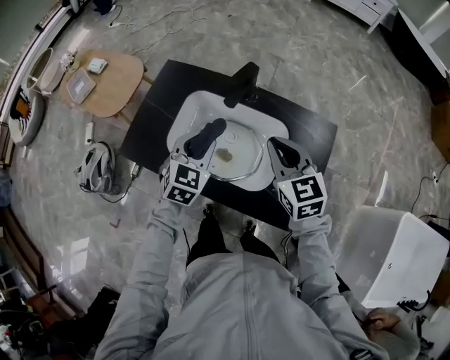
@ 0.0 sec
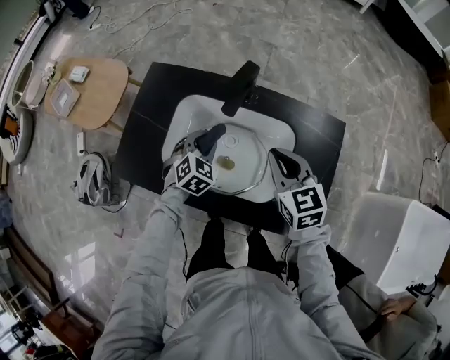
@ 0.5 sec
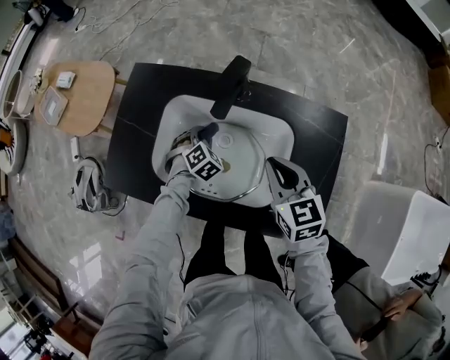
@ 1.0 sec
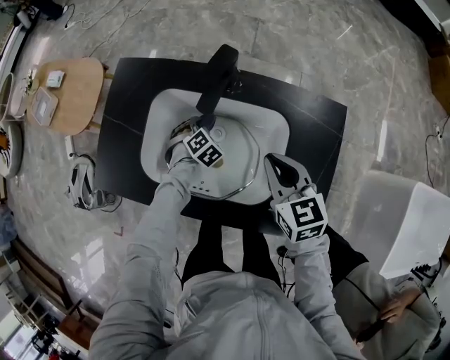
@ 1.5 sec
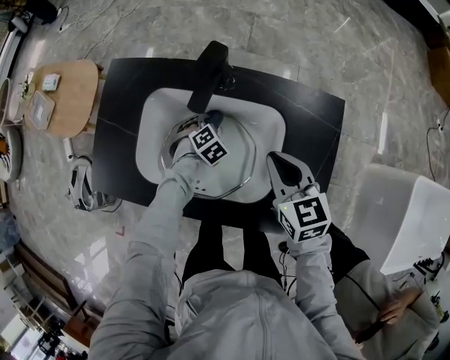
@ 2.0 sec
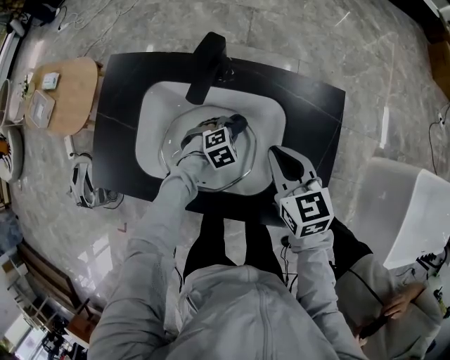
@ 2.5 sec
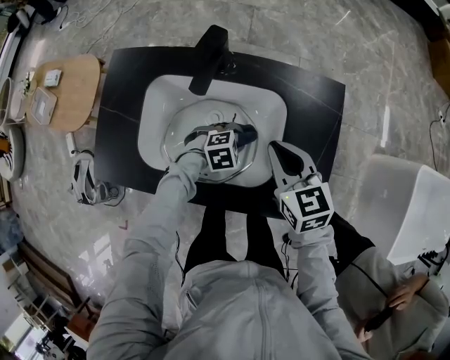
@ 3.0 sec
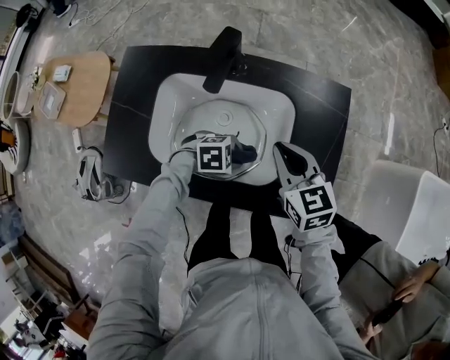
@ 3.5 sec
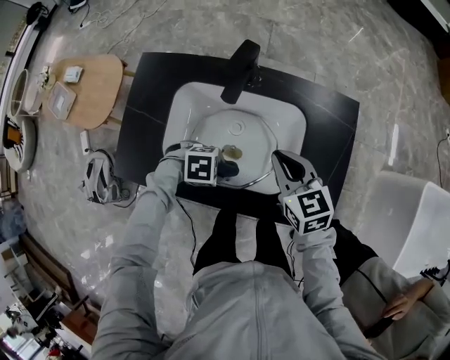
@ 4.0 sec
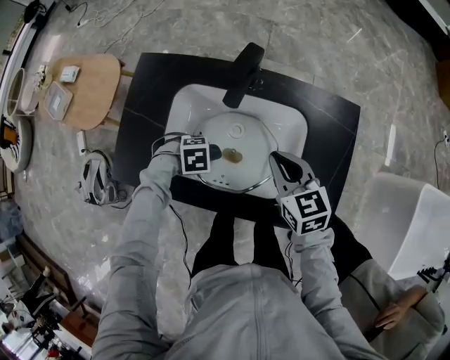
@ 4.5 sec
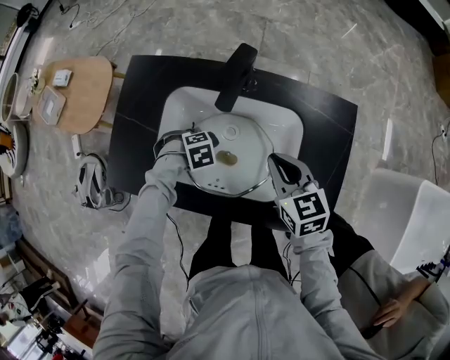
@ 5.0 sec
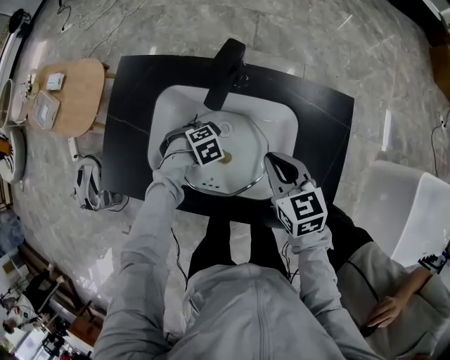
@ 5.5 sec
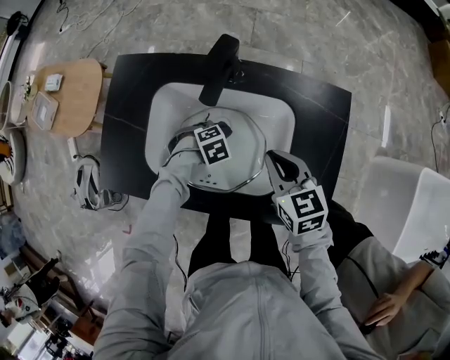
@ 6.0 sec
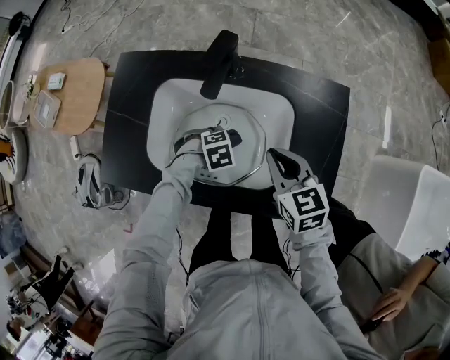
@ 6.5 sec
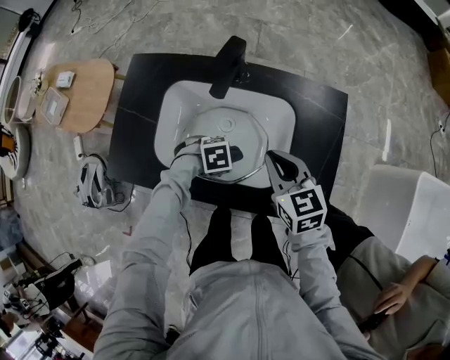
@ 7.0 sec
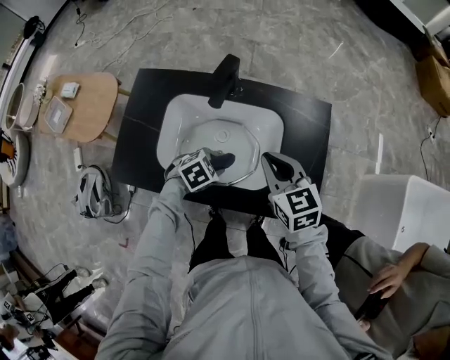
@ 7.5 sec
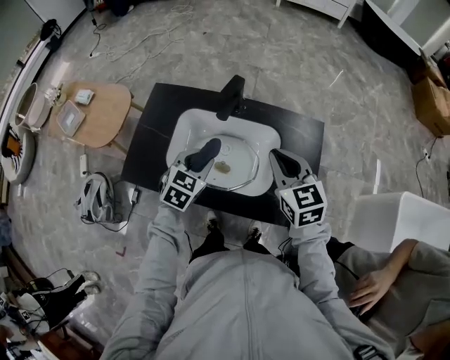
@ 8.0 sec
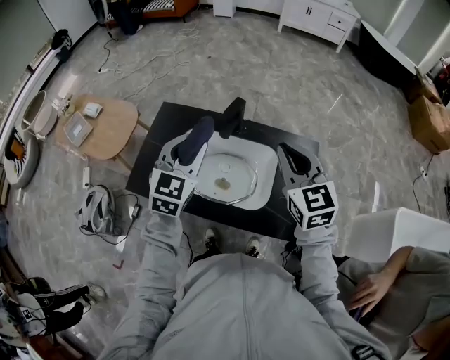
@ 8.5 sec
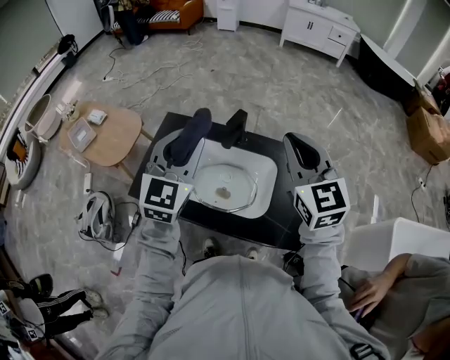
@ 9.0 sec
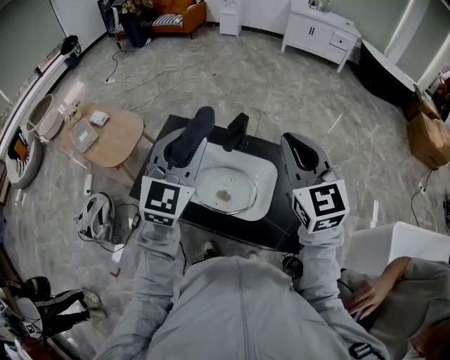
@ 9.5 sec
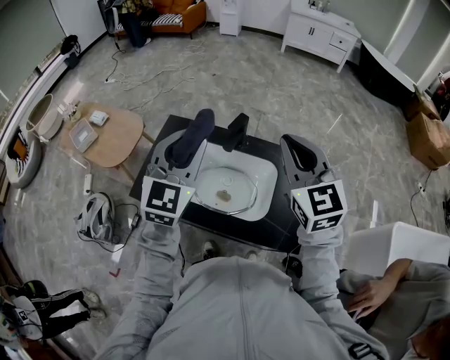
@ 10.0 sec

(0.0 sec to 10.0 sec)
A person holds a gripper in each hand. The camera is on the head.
0.0 sec - 2.0 sec: The left gripper moves downward, roughly 30 cm, and points its fingers approximately 40 degrees further downward; the right gripper moves downward, about 10 cm.
2.0 sec - 4.0 sec: The right gripper ends up about 5 cm from where it was; the left gripper changes place by roughly 25 cm, and changes its angle by approximately 50 degrees.
4.0 sec - 6.0 sec: The left gripper shifts by about 15 cm, and changes its angle by roughly 30 degrees.
6.0 sec - 8.0 sec: The right gripper heads upward, covering about 15 cm, while the left gripper moves upward, about 25 cm, and points its fingers some 40 degrees further upward.
8.0 sec - 10.0 sec: Both grippers move upward, about 25 cm. The left gripper tips its fingers upward by approximately 30 degrees. Meanwhile the right gripper swivels roughly 20 degrees.

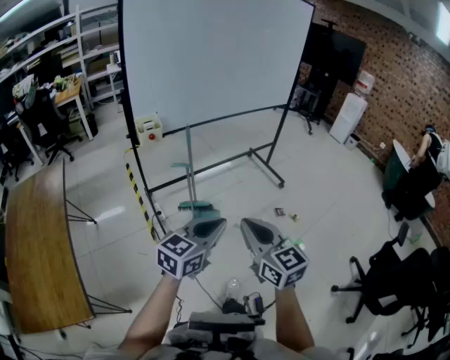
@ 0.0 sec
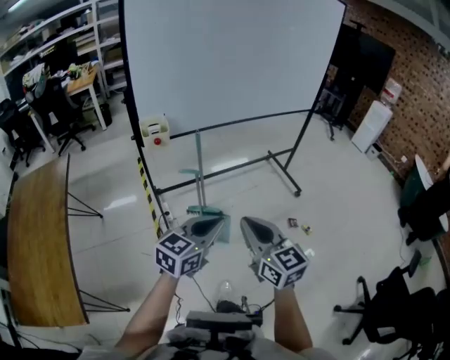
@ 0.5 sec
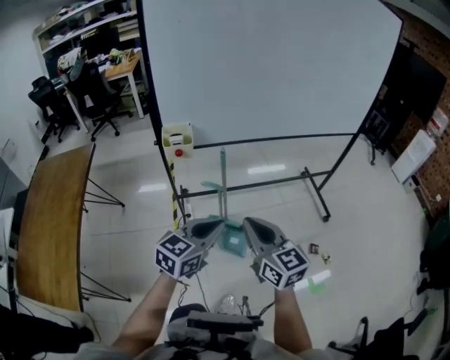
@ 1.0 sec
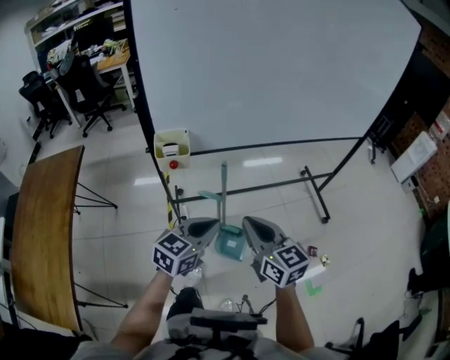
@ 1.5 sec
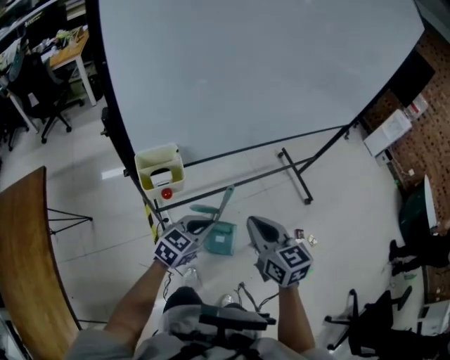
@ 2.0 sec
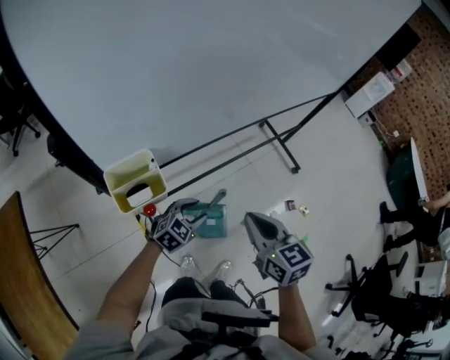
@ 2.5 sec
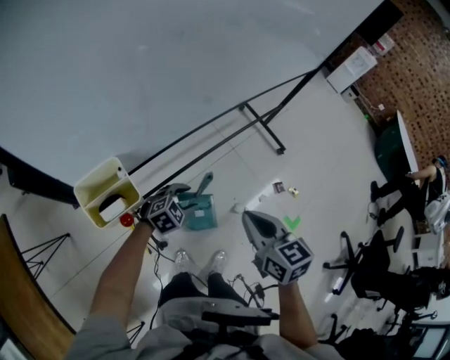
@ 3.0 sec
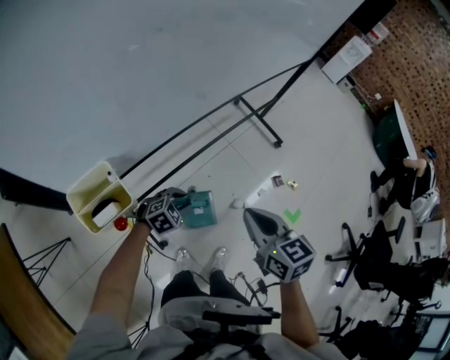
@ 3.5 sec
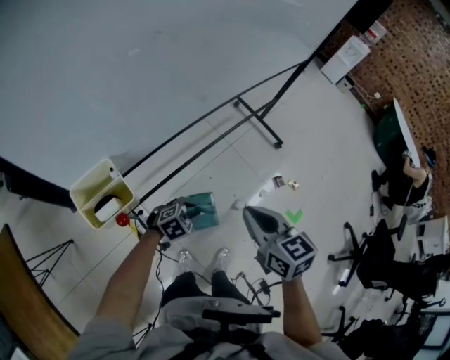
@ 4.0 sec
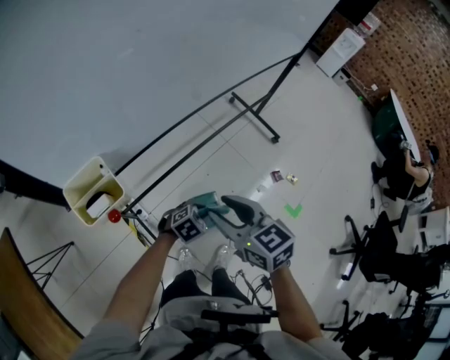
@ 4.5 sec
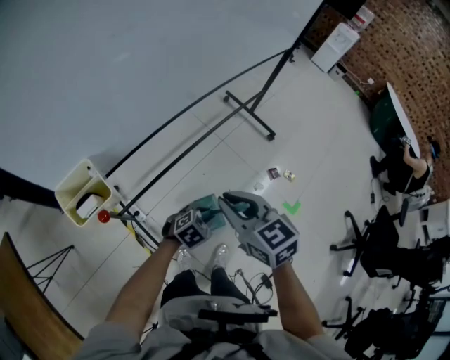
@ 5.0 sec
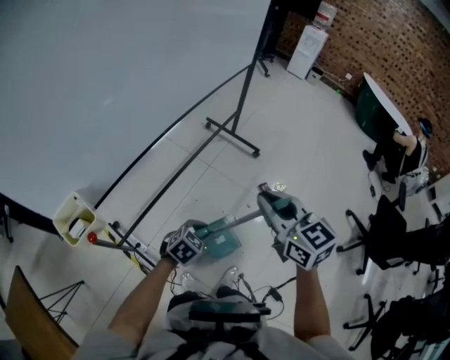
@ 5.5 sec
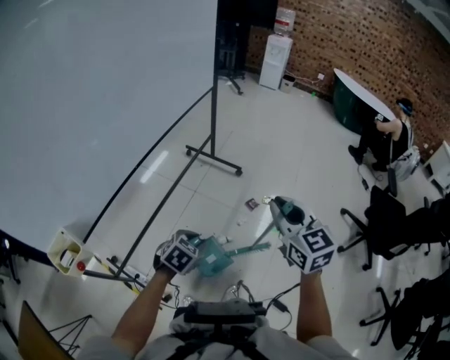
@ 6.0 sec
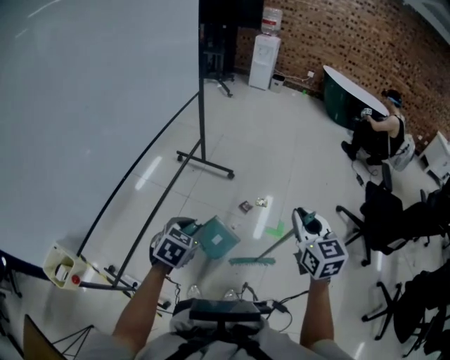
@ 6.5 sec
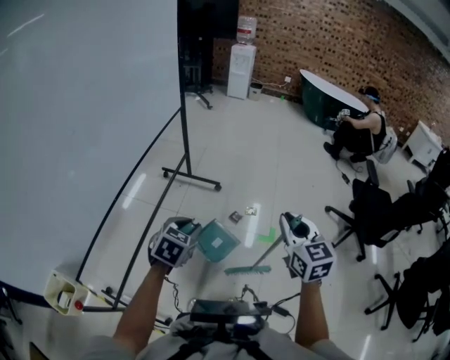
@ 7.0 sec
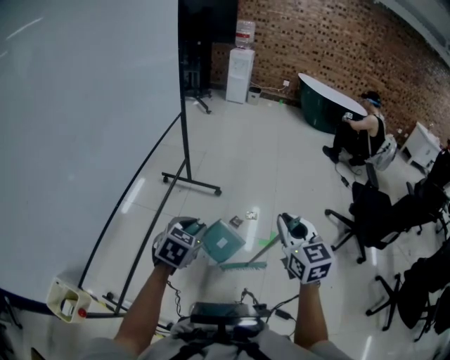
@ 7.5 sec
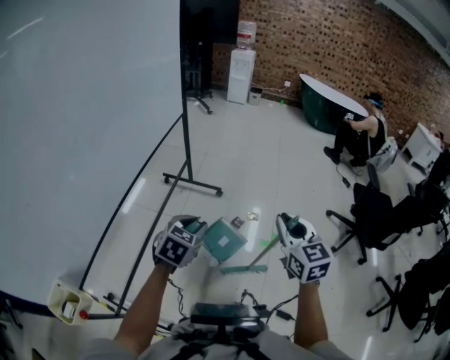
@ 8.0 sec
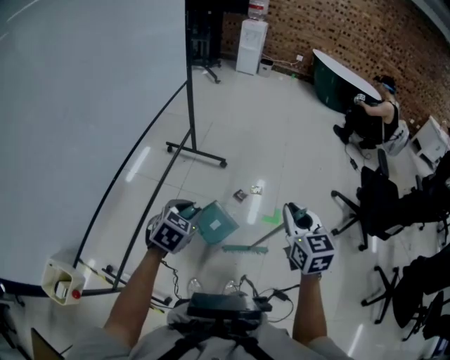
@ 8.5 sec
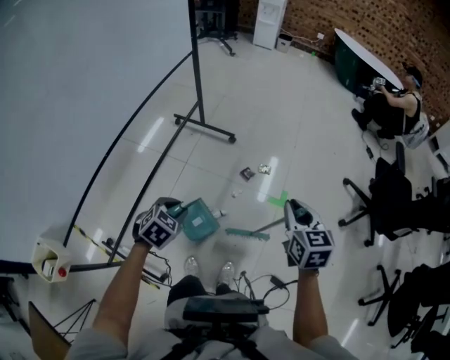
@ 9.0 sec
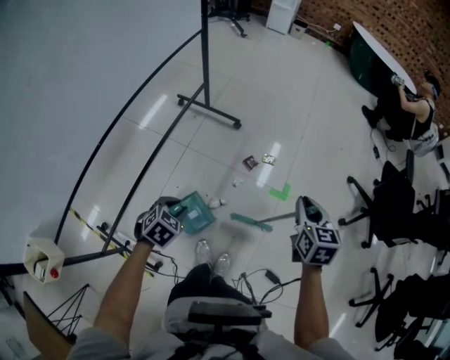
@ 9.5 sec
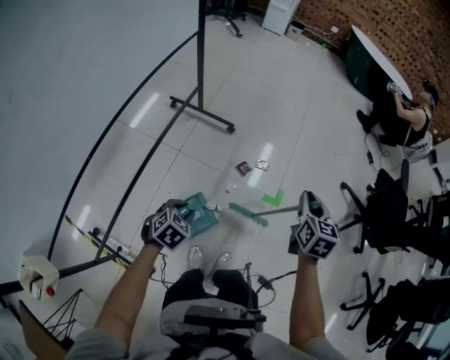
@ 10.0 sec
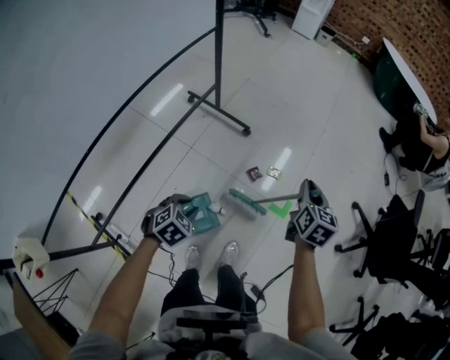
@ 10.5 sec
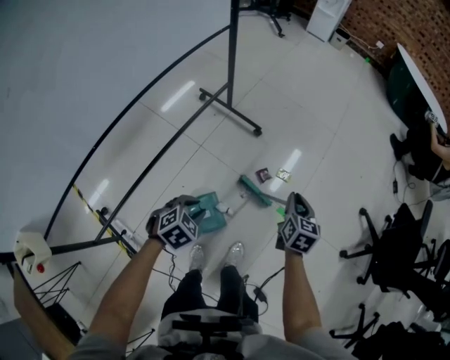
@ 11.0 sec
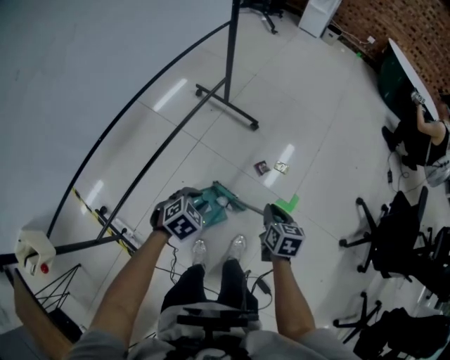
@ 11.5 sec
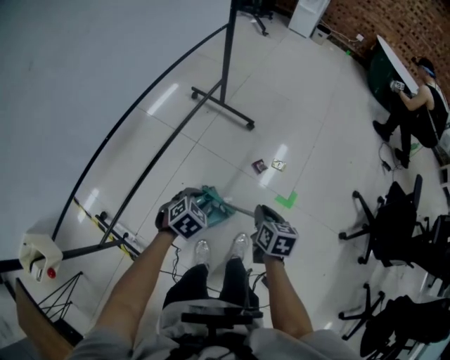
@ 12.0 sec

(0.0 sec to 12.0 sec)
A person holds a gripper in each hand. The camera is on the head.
0.0 sec - 2.0 sec: The left gripper heads forward and downward, covering some 40 cm; the right gripper moves forward, approximately 35 cm.
2.0 sec - 4.0 sec: The right gripper moves to the right, roughly 5 cm, while the left gripper goes approximately 15 cm downward, and changes its angle by about 50 degrees.
4.0 sec - 6.0 sec: The right gripper moves to the right, approximately 30 cm, changes its angle by some 30 degrees, and opens and closes again; the left gripper heads to the right and upward, covering some 25 cm.
6.0 sec - 8.0 sec: The left gripper shifts some 15 cm forward and upward. The right gripper is displaced to the right by roughly 5 cm.
8.0 sec - 10.0 sec: The right gripper heads downward, forward and to the right, covering about 25 cm, and swivels some 30 degrees. Meanwhile the left gripper shifts about 20 cm downward, and swivels about 20 degrees.
10.0 sec - 12.0 sec: The right gripper travels to the left, downward and backward by approximately 20 cm, and swivels approximately 20 degrees.

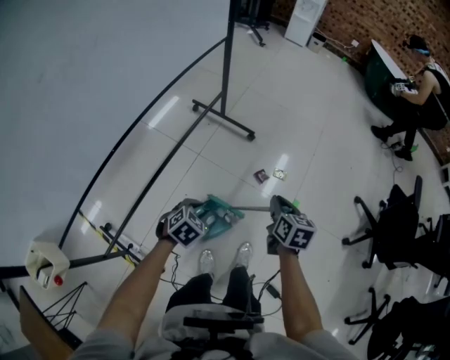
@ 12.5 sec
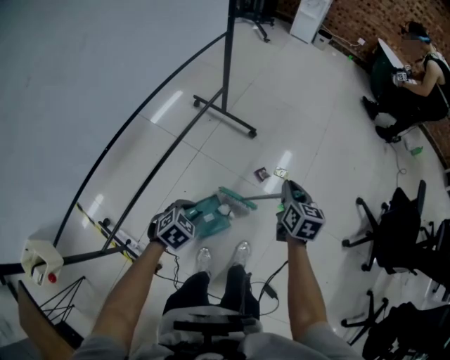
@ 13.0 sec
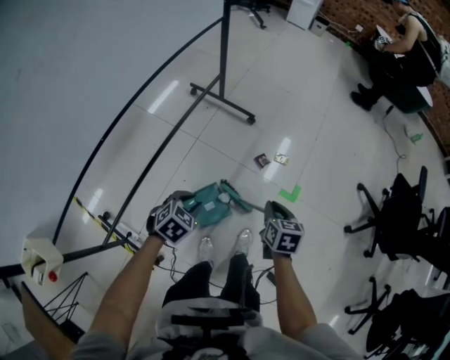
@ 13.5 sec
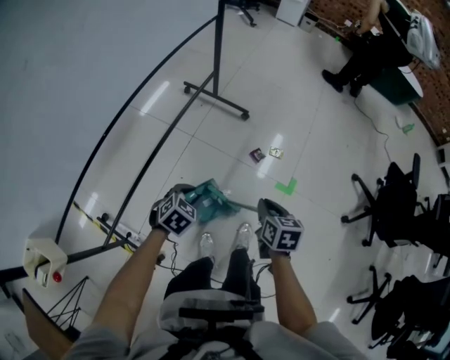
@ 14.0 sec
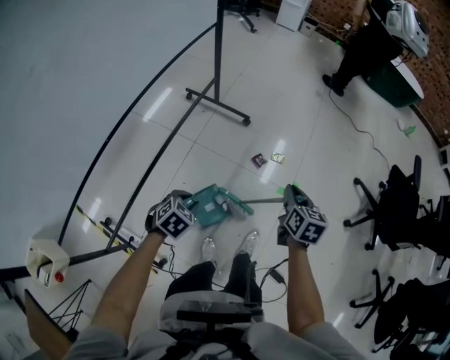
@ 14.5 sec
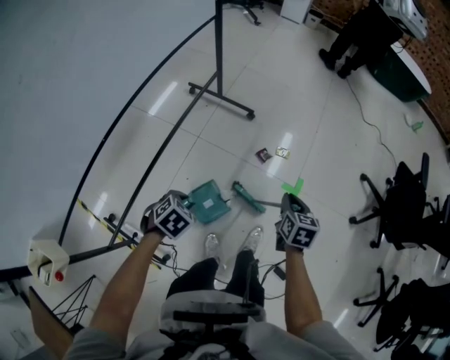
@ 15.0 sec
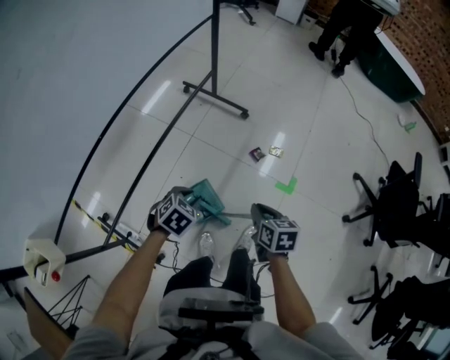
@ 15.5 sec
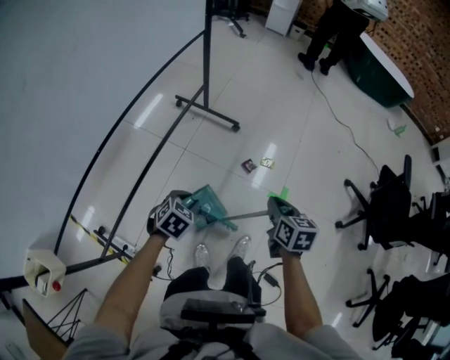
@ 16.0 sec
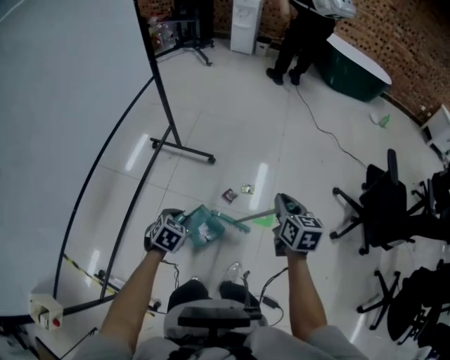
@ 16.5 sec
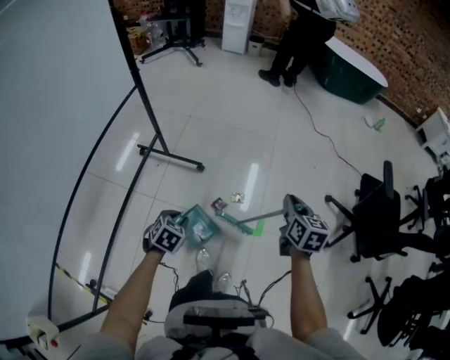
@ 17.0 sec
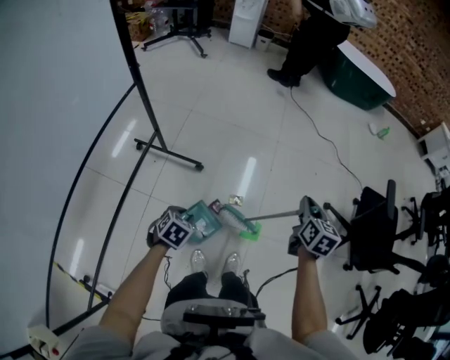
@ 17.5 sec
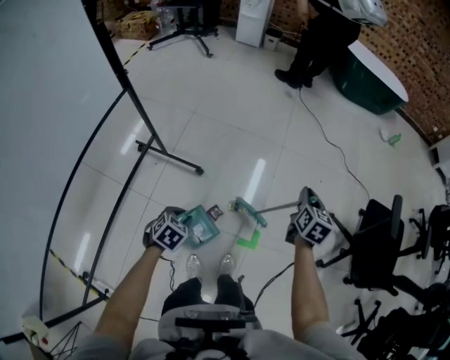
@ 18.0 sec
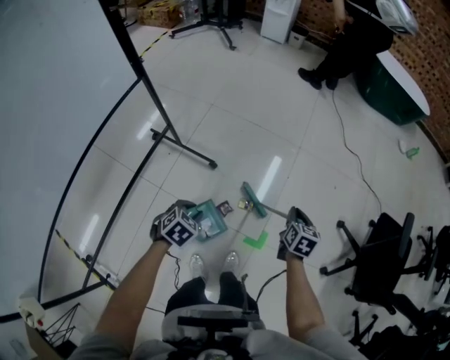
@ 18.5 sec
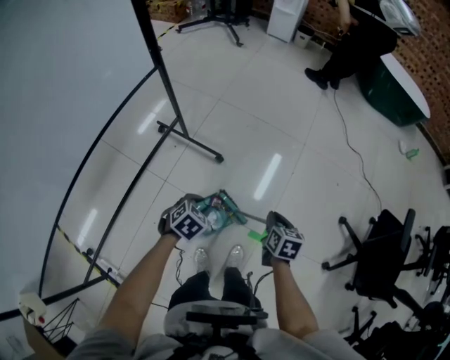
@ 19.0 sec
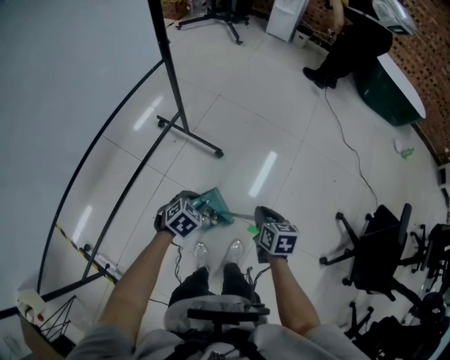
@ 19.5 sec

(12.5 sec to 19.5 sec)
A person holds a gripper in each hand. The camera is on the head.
12.5 sec - 14.5 sec: The right gripper moves forward and backward over about 15 cm, changing direction 2 times.
14.5 sec - 16.0 sec: The right gripper moves about 10 cm backward and comes back.
16.0 sec - 17.5 sec: The right gripper is displaced forward and to the right by some 35 cm, and swivels roughly 30 degrees; the left gripper moves forward, some 25 cm.
17.5 sec - 19.5 sec: The right gripper moves to the left and downward, approximately 20 cm, and changes its angle by some 30 degrees.
